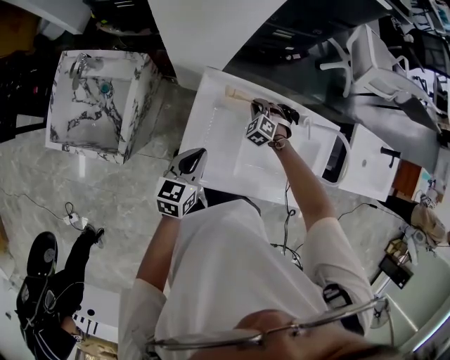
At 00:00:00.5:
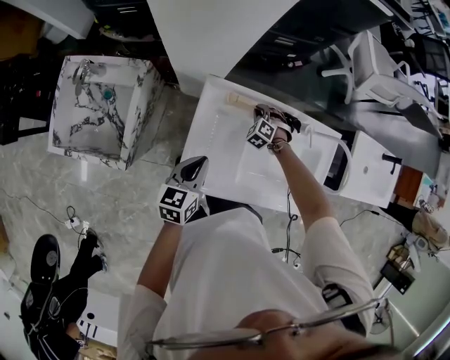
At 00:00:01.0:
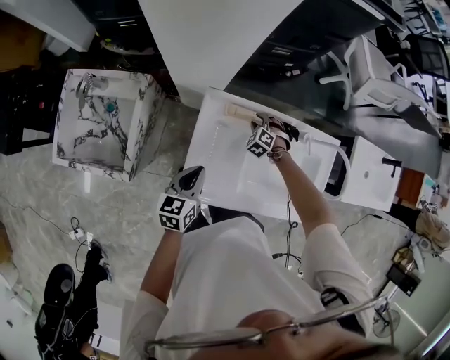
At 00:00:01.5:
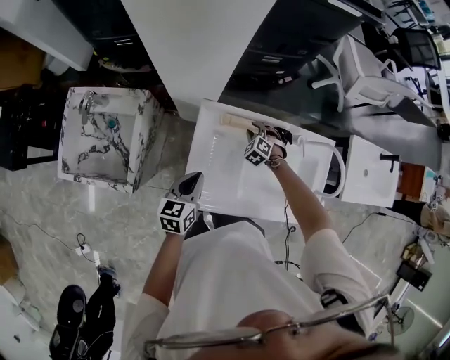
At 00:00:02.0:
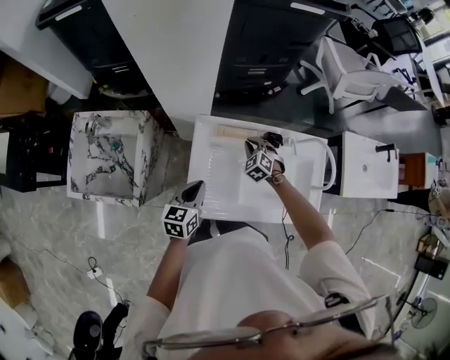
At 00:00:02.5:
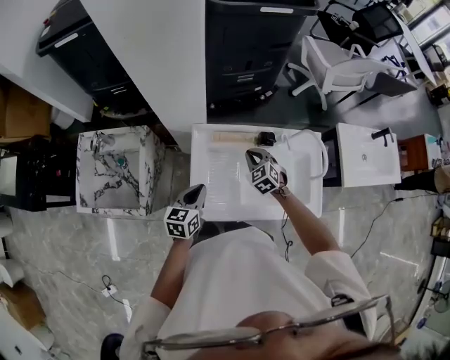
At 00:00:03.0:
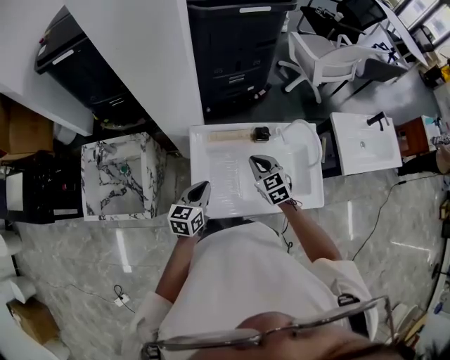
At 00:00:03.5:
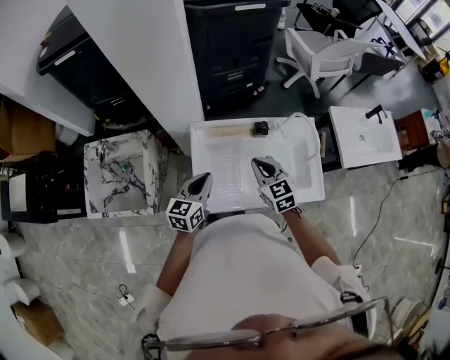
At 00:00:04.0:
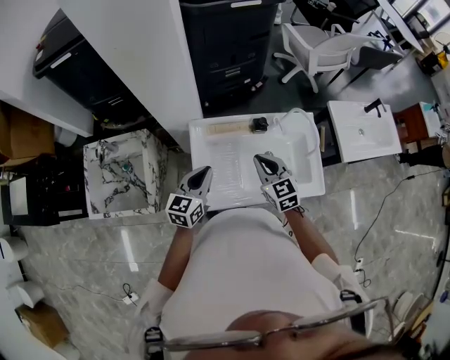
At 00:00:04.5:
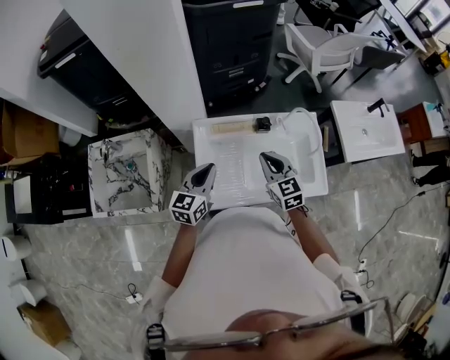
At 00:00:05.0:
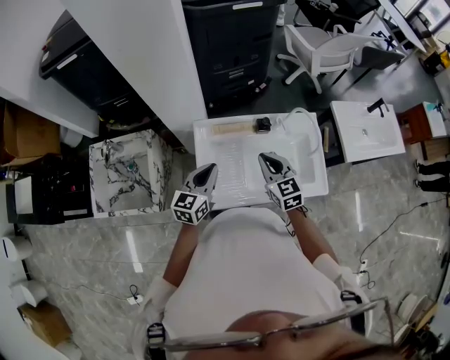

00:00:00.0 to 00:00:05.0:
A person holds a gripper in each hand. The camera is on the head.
00:00:00.0 to 00:00:02.5: The right gripper goes some 20 cm upward and backward, swivels roughly 30 degrees, and opens, then closes again.
00:00:02.5 to 00:00:05.0: The left gripper goes roughly 10 cm upward. The right gripper goes roughly 20 cm upward and backward, and turns by about 30 degrees.

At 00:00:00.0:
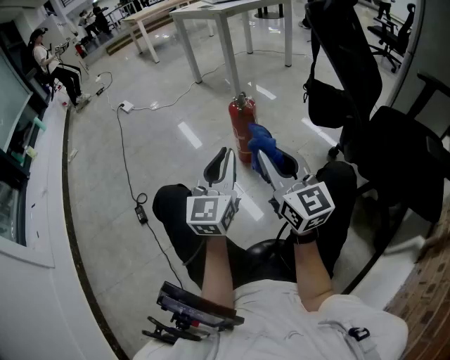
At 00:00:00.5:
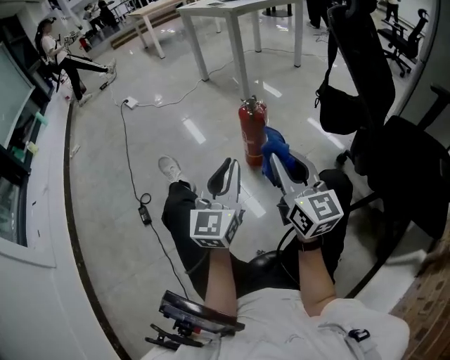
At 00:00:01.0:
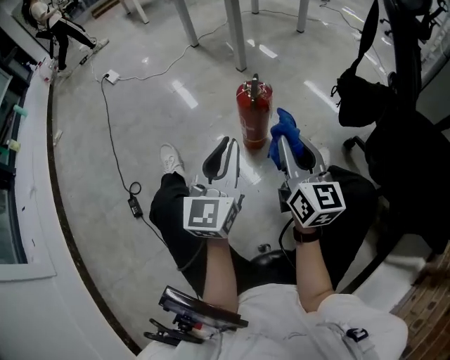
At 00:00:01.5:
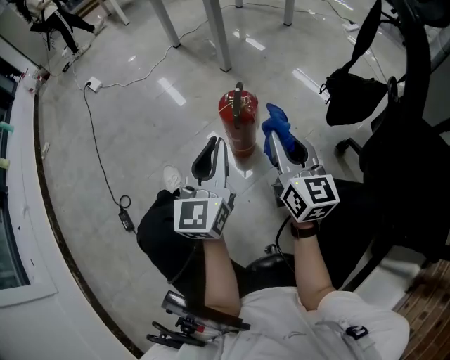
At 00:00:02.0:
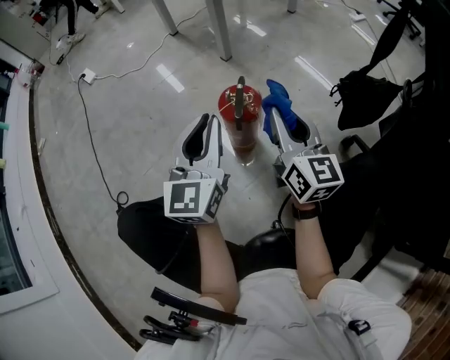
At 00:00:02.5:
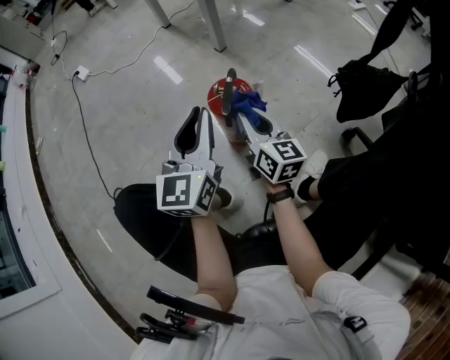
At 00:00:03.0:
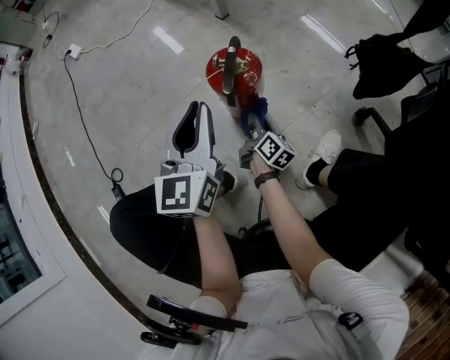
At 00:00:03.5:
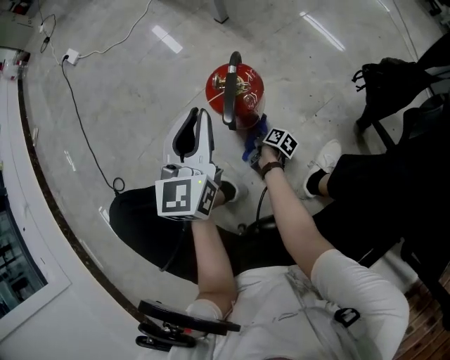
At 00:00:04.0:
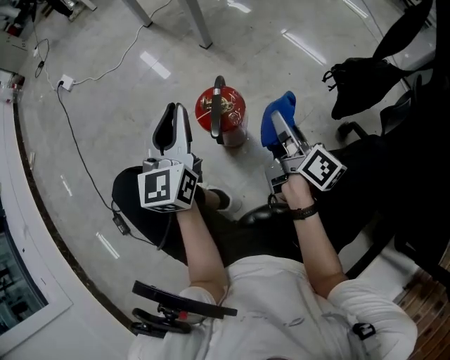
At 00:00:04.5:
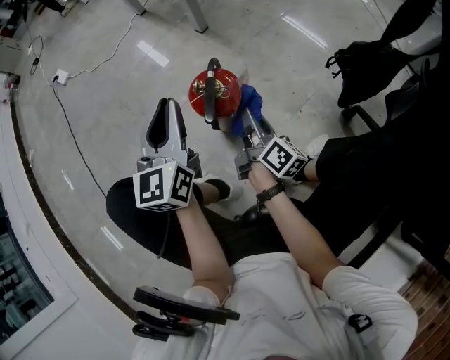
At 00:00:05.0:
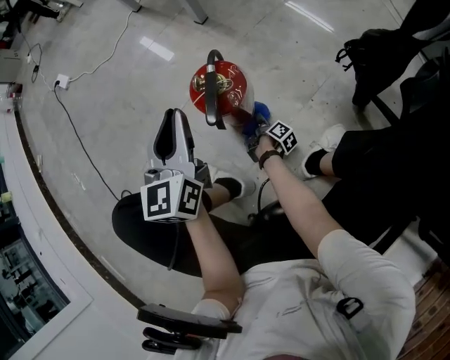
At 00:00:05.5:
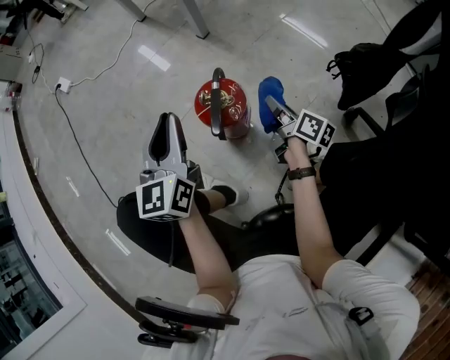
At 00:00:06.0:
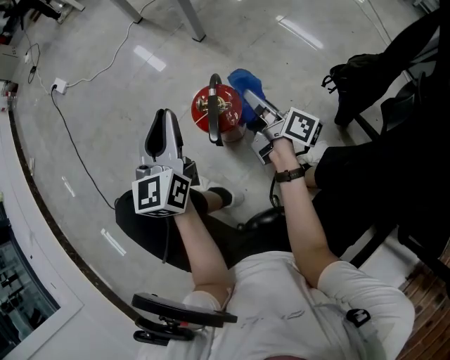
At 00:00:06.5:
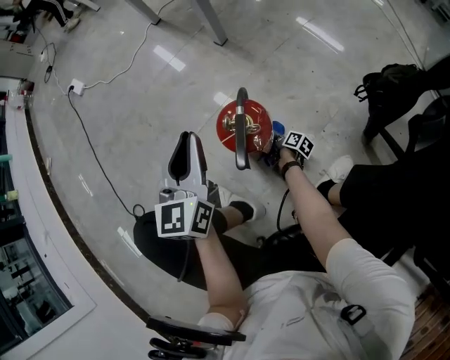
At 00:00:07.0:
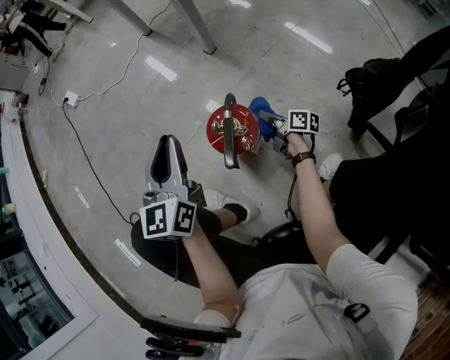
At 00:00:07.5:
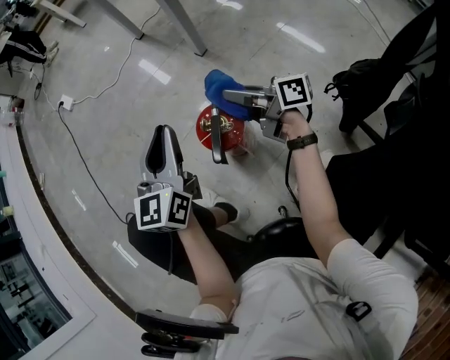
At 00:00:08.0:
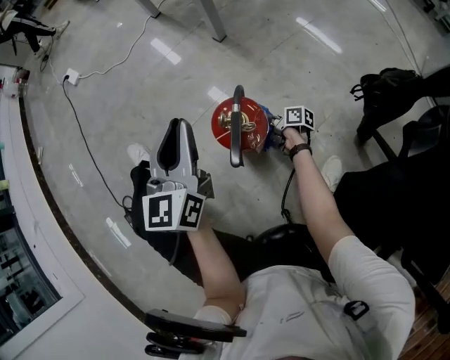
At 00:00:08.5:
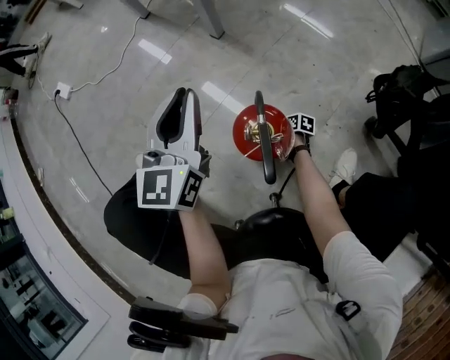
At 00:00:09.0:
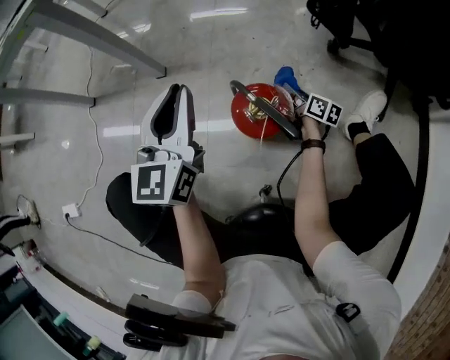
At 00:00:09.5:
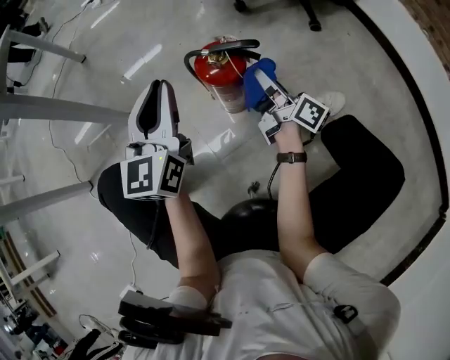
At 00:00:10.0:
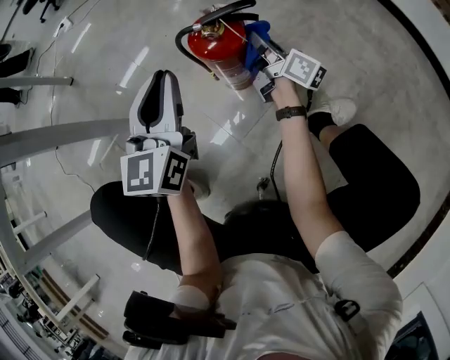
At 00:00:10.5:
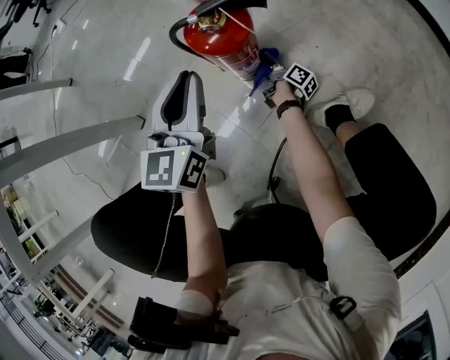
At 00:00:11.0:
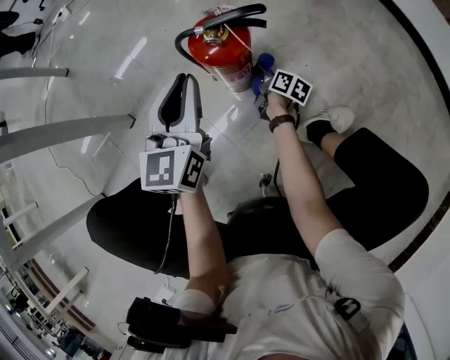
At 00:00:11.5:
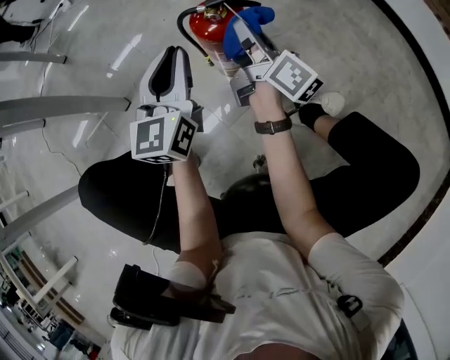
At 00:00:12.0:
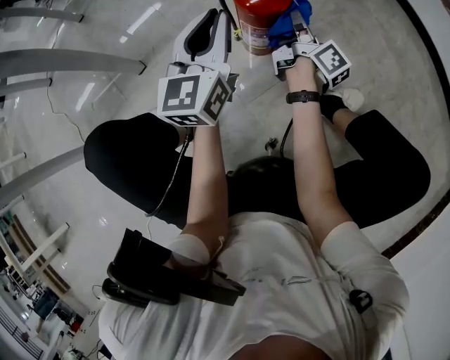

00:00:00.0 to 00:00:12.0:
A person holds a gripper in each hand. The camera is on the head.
00:00:00.0 to 00:00:02.0: Both grippers travel together forward, about 30 cm.
00:00:02.0 to 00:00:04.0: The left gripper is displaced forward by roughly 10 cm, while the right gripper travels to the right by approximately 5 cm, travels downward and back again, approximately 50 cm each way, and rolls clockwise, seen from behind, by about 40 degrees.
00:00:04.0 to 00:00:06.0: The right gripper shifts roughly 5 cm forward, and reaches some 40 cm downward, then returns.
00:00:06.0 to 00:00:08.0: The right gripper swings up and down, some 40 cm each way, with 2 reversals, and turns by roughly 40 degrees.
00:00:08.0 to 00:00:10.0: The right gripper moves up and down over approximately 40 cm, changing direction 2 times, and turns by about 120 degrees. Meanwhile the left gripper turns by approximately 100 degrees.
00:00:10.0 to 00:00:12.0: The right gripper moves up and down over approximately 35 cm, changing direction 2 times.

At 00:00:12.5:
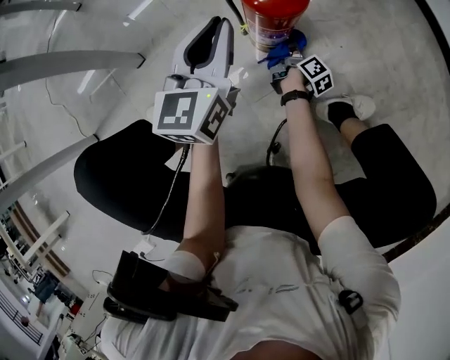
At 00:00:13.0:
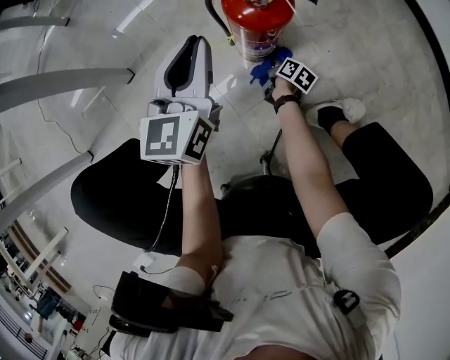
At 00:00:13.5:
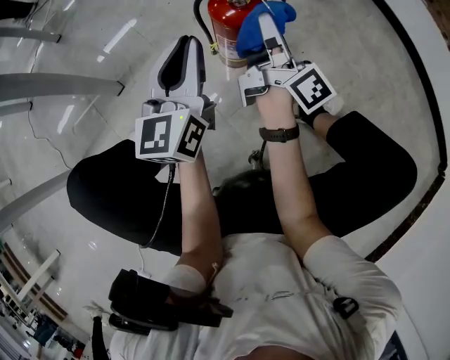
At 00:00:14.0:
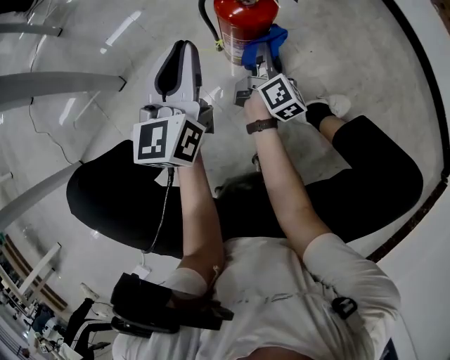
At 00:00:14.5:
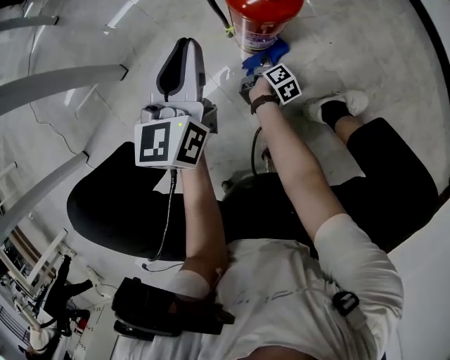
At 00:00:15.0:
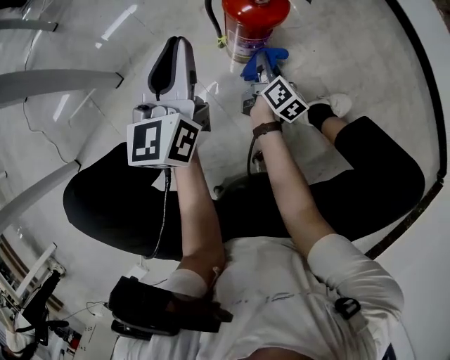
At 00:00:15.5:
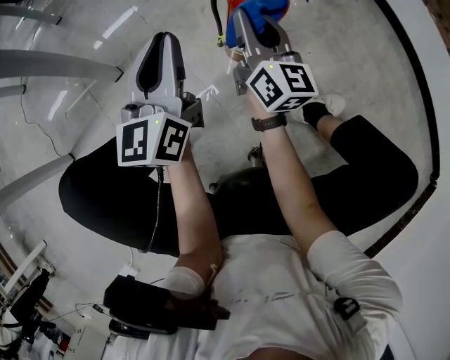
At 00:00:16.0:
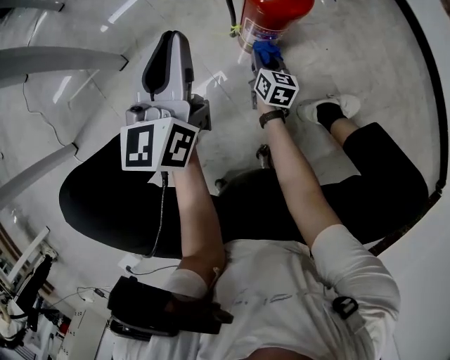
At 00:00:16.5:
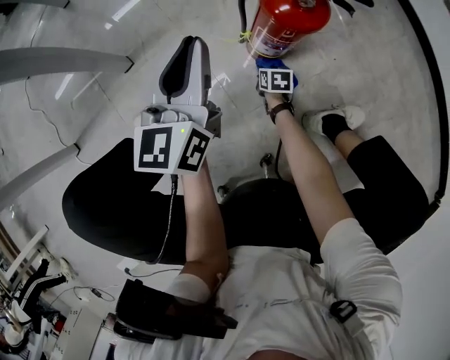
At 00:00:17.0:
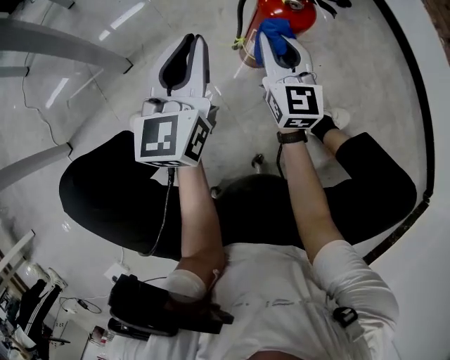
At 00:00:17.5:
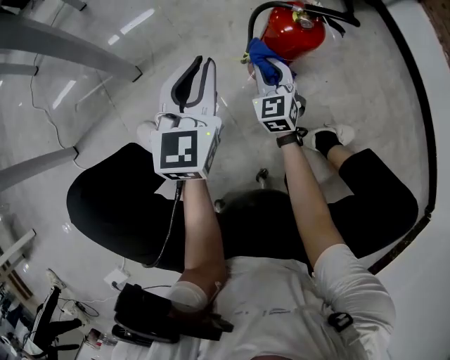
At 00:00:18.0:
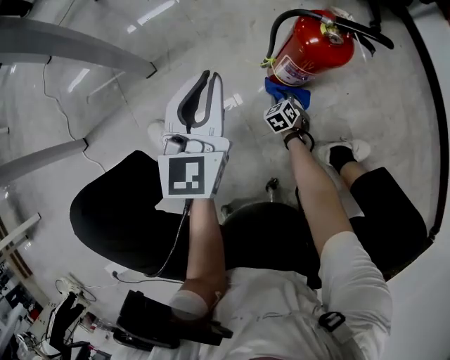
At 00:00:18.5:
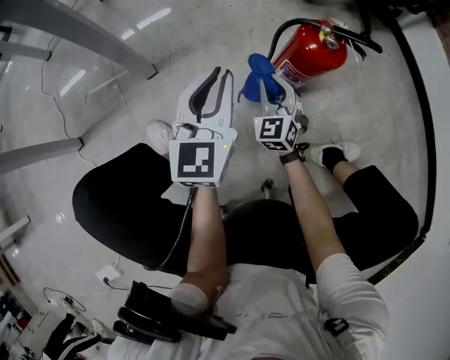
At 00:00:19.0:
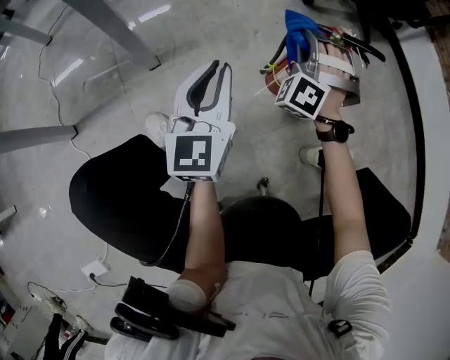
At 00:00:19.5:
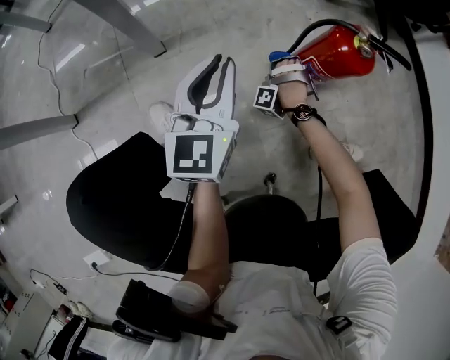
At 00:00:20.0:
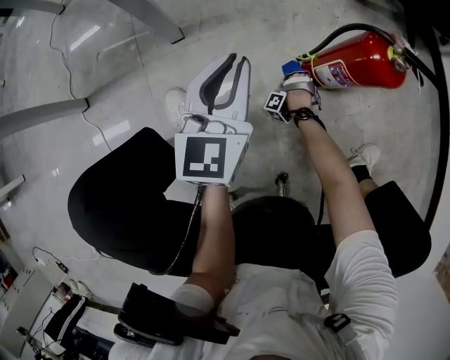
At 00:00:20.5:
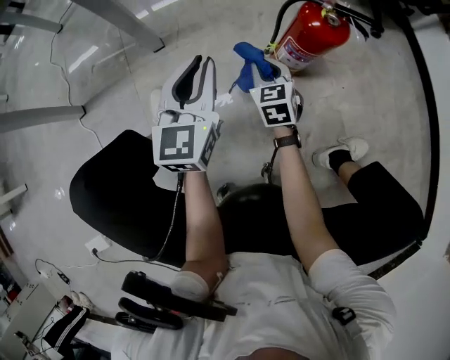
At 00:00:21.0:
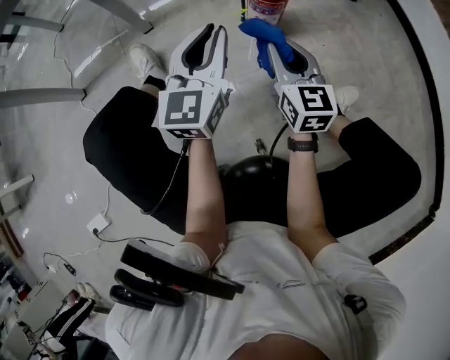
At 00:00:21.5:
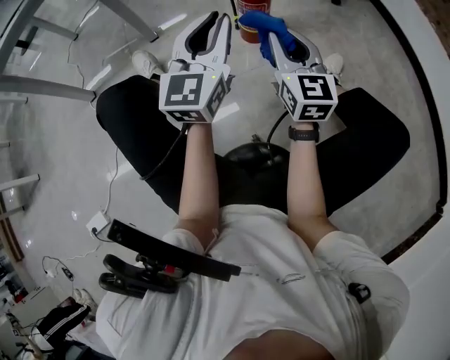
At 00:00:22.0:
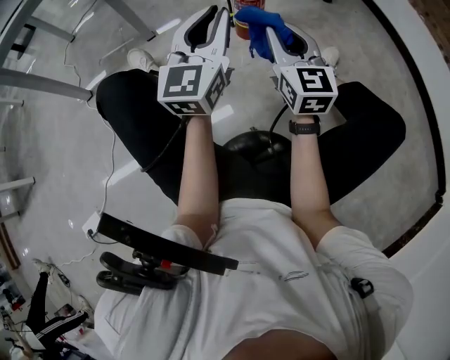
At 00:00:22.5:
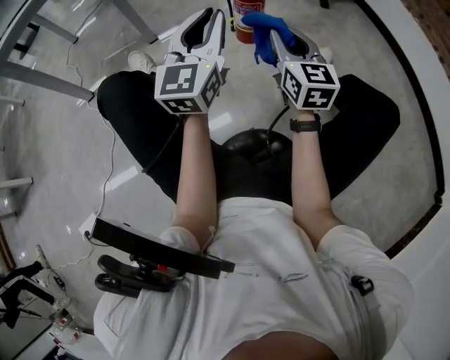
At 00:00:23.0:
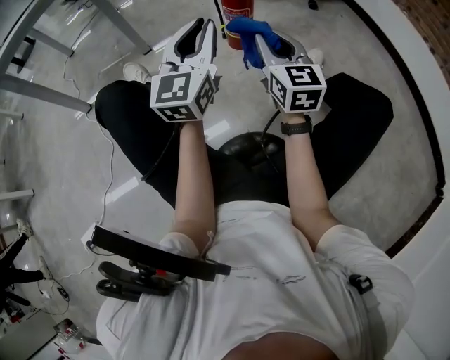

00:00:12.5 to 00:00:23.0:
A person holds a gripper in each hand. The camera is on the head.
00:00:12.5 to 00:00:14.5: The right gripper swings up and down, roughly 40 cm each way, with 2 reversals.
00:00:14.5 to 00:00:16.5: The right gripper moves to the left, about 5 cm, moves about 40 cm upward and comes back, and twists about 60 degrees counterclockwise, seen from behind.
00:00:16.5 to 00:00:19.0: The left gripper moves to the left, some 5 cm. The right gripper swings up and down, approximately 40 cm each way, with 2 reversals, and rotates around the line of its fingers by roughly 100 degrees, counterclockwise from behind.
00:00:19.0 to 00:00:21.0: The right gripper travels downward and back again, approximately 40 cm each way, and rolls clockwise, seen from behind, by roughly 90 degrees; the left gripper shifts by about 15 cm.
00:00:21.0 to 00:00:23.0: The left gripper is displaced backward and upward by approximately 15 cm; the right gripper goes approximately 15 cm backward, upward and to the right.
